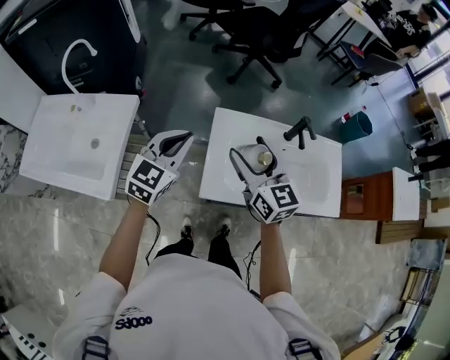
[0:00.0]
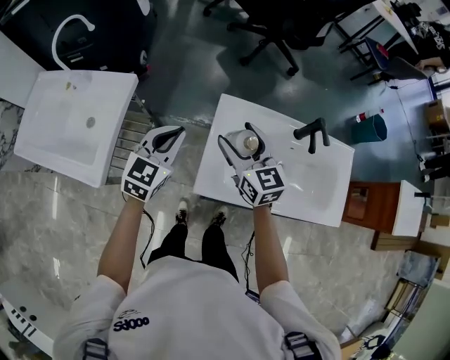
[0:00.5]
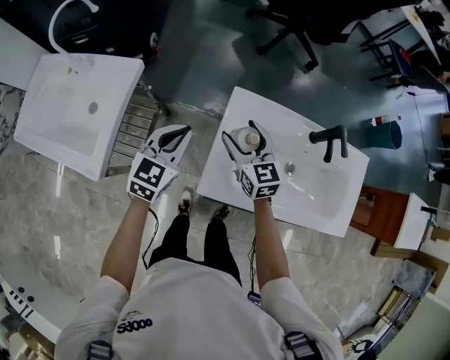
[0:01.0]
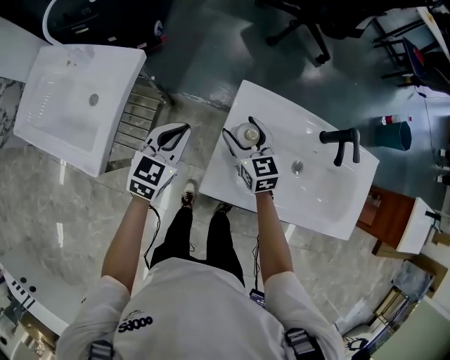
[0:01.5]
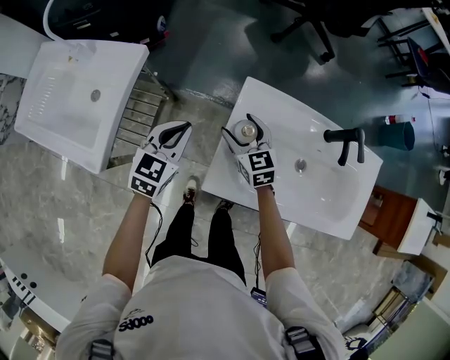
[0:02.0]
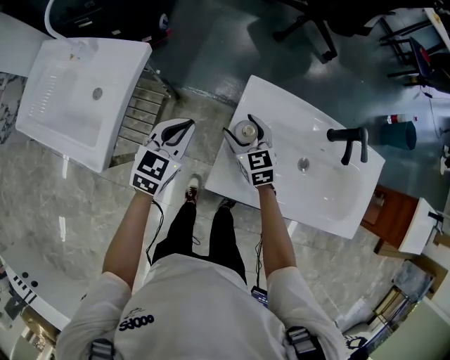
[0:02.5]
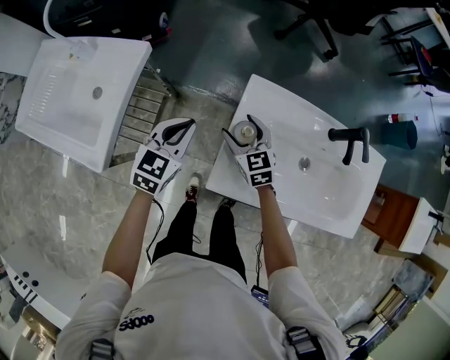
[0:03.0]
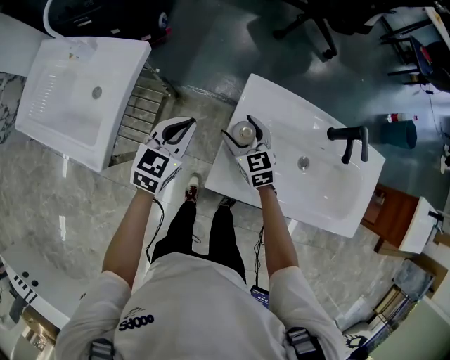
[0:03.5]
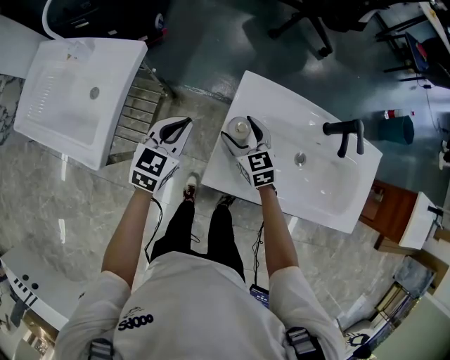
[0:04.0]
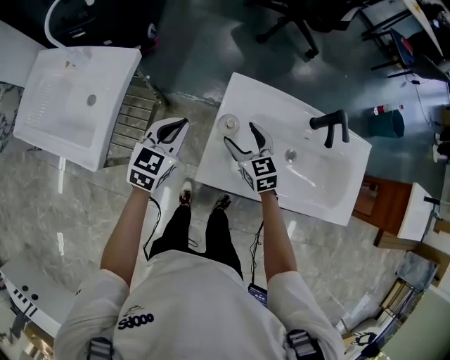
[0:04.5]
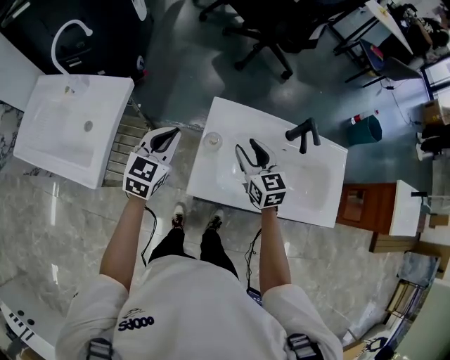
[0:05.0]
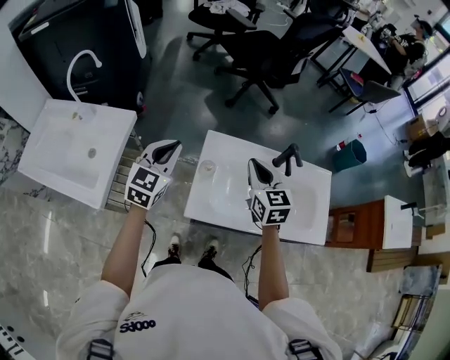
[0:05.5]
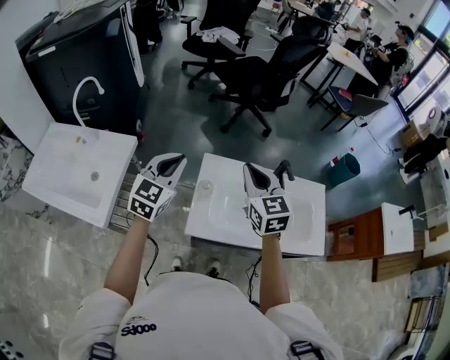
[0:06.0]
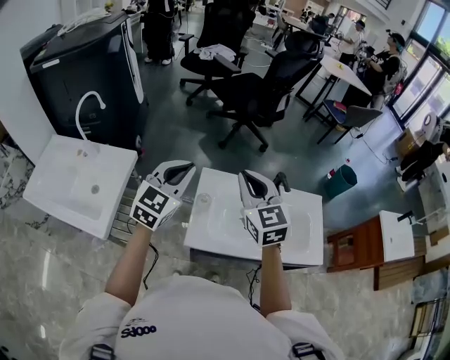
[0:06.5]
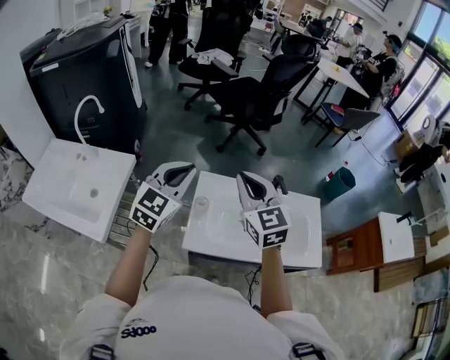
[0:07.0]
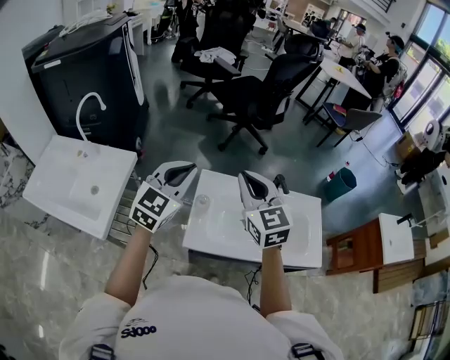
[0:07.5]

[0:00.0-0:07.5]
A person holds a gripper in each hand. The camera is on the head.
0:00.0 to 0:02.0: The left gripper travels downward by about 15 cm, and swivels about 20 degrees; the right gripper goes some 25 cm downward, and turns by some 30 degrees.
0:02.0 to 0:04.0: The grippers make only small movements.
0:04.0 to 0:05.5: The right gripper shifts about 25 cm upward and to the right, swivels roughly 20 degrees, and closes its fingers; the left gripper shifts roughly 15 cm upward.
0:05.5 to 0:07.5: The right gripper shifts about 15 cm upward. The left gripper shifts about 15 cm upward and to the right.

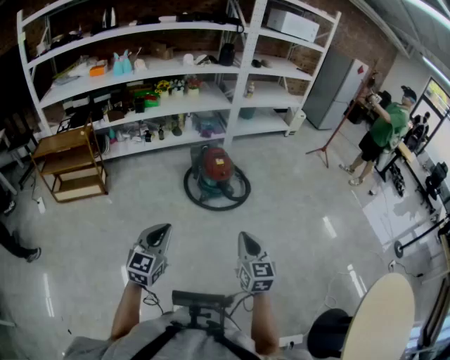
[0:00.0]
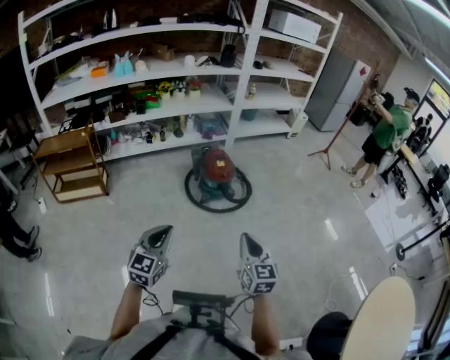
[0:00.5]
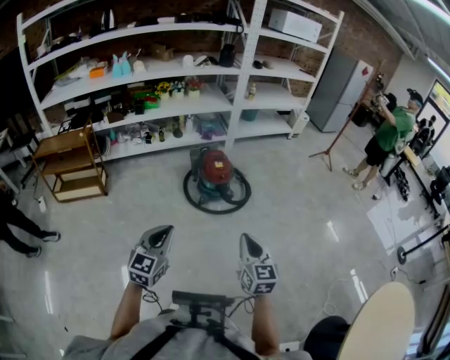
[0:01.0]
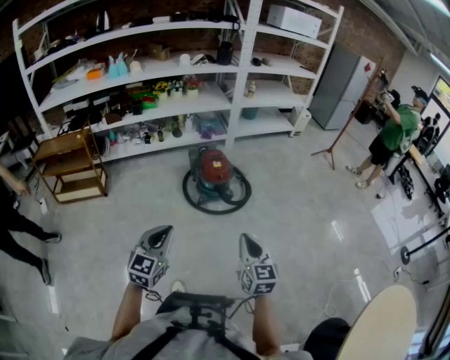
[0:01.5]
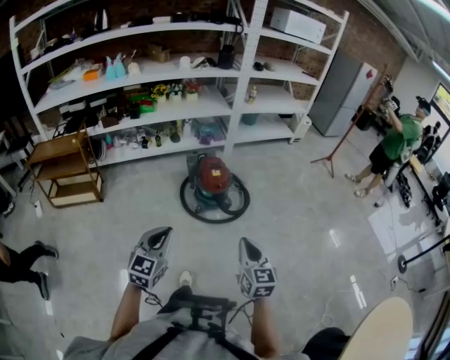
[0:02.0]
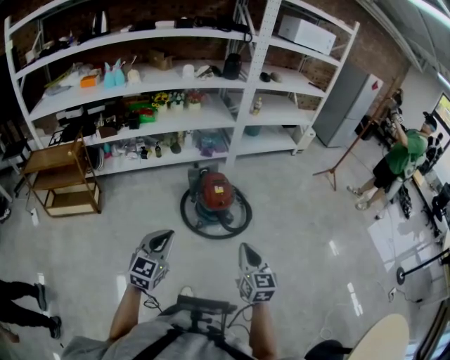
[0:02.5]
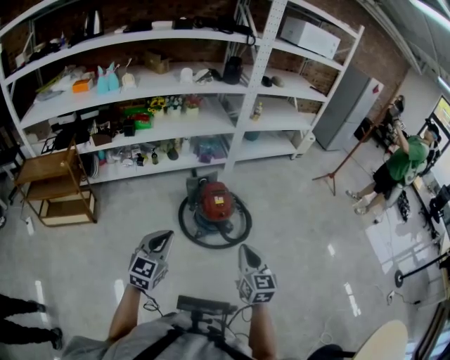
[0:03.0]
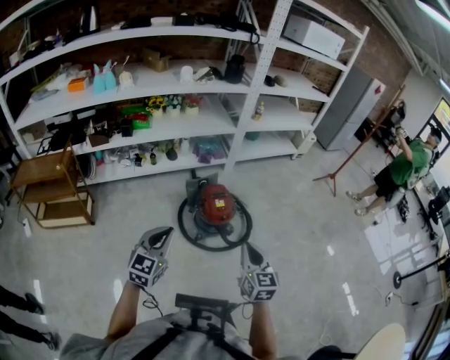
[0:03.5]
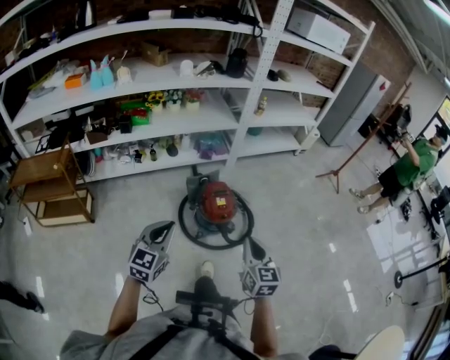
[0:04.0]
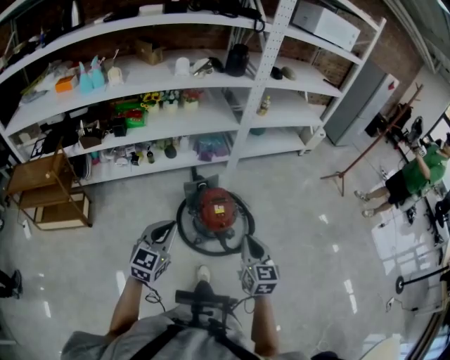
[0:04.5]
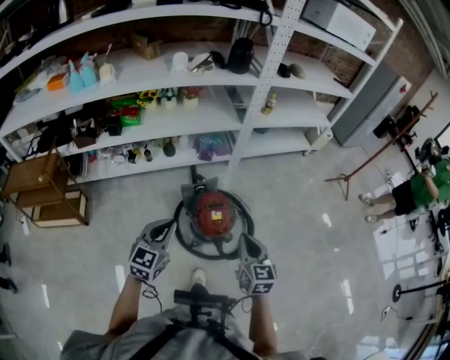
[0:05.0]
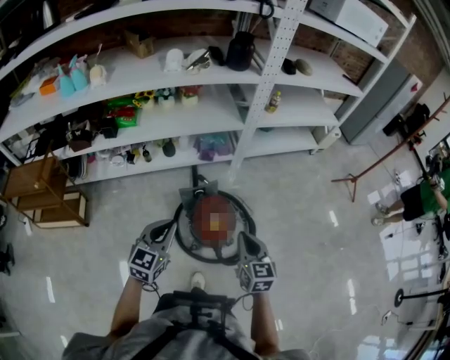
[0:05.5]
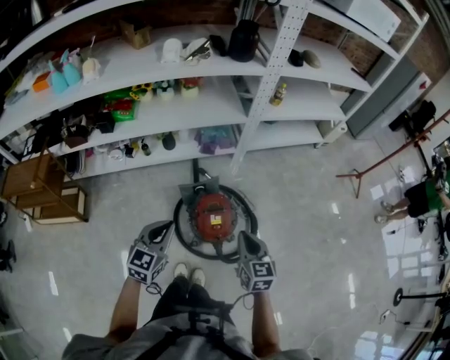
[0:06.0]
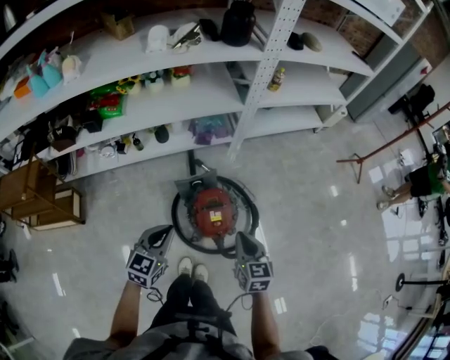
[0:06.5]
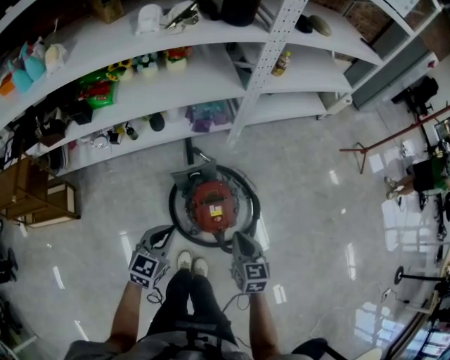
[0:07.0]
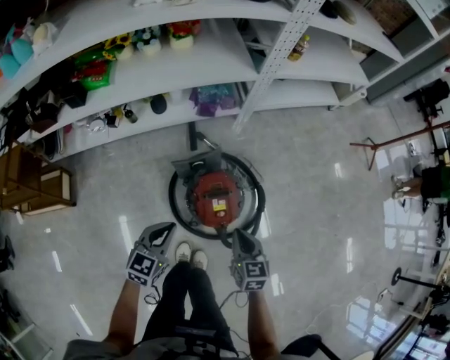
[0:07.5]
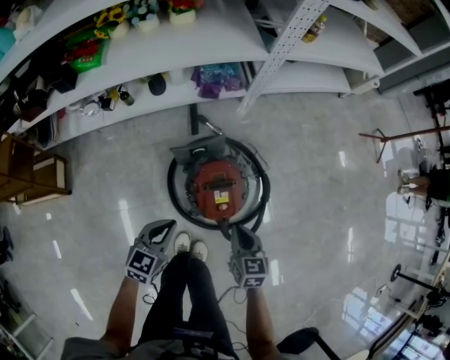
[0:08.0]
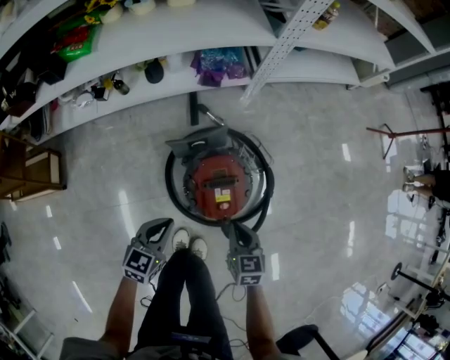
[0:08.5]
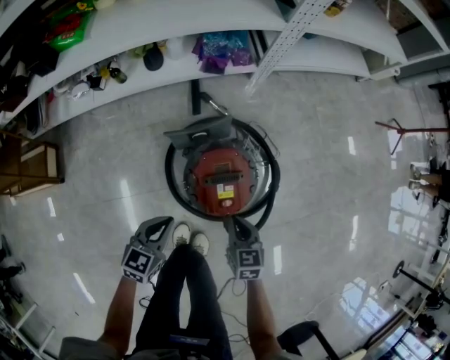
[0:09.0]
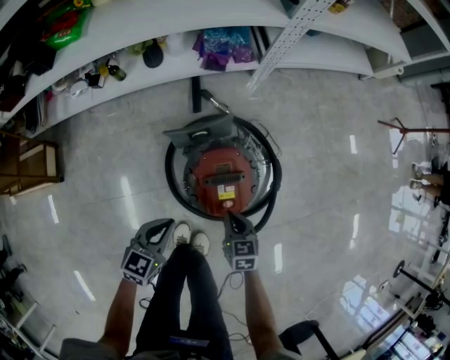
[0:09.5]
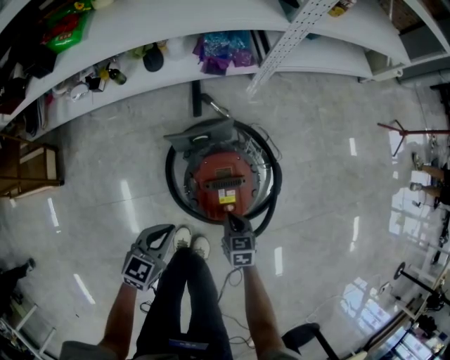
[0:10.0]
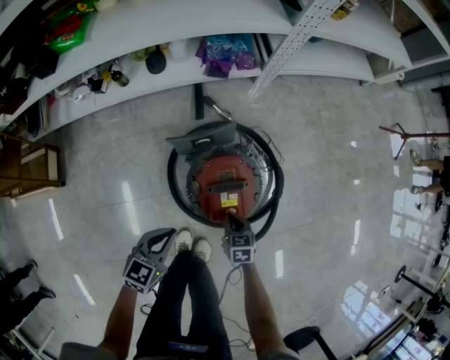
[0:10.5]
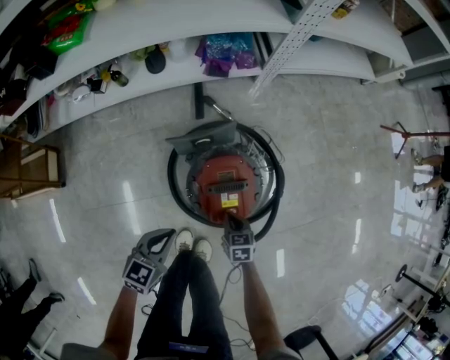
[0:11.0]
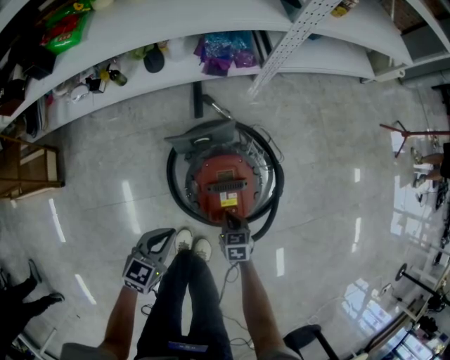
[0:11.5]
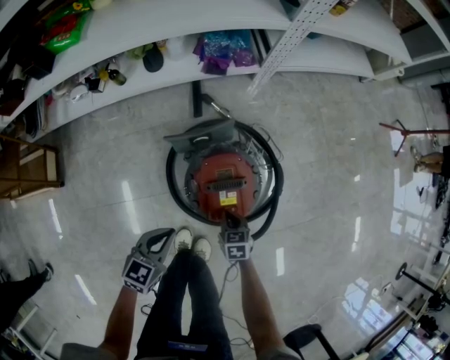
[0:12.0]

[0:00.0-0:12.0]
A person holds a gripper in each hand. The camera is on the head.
0:00.0 to 0:02.0: The two grippers go roughly 15 cm forward and to the right.
0:02.0 to 0:04.0: The two grippers go about 30 cm forward.
0:04.0 to 0:06.0: Both grippers travel together forward, roughly 30 cm.
0:06.0 to 0:08.0: The two grippers go some 25 cm downward.
0:08.0 to 0:10.0: The right gripper is displaced downward by about 20 cm. Meanwhile the left gripper heads downward, covering approximately 10 cm.
0:10.0 to 0:12.0: The right gripper goes about 5 cm downward.

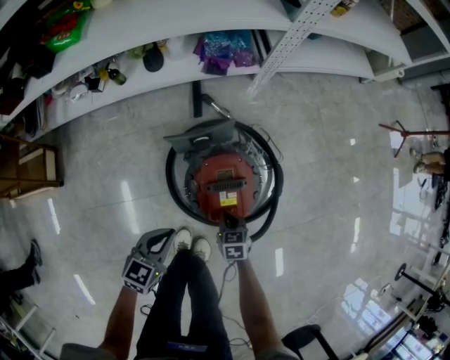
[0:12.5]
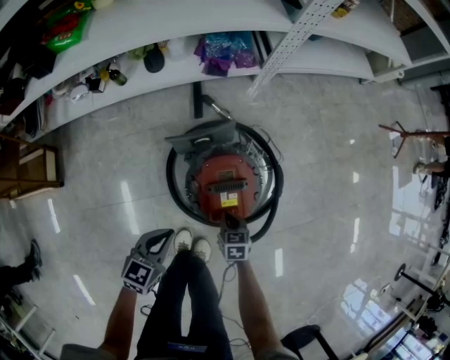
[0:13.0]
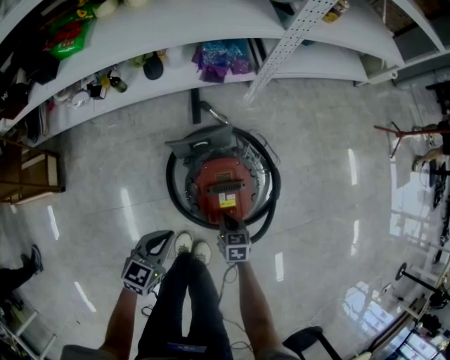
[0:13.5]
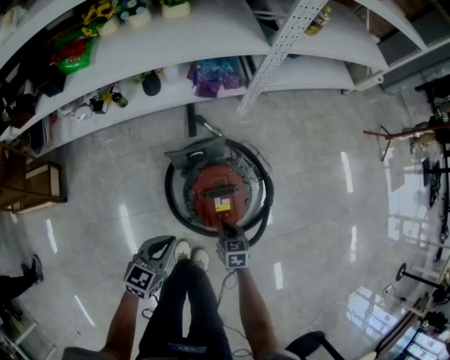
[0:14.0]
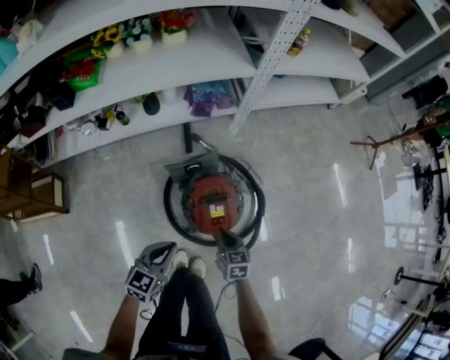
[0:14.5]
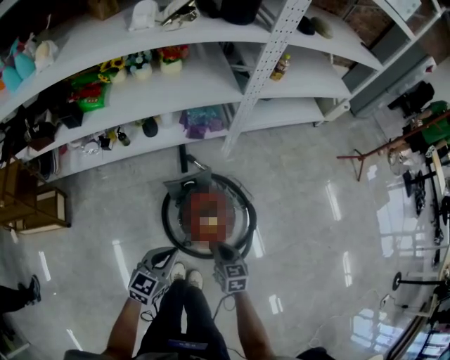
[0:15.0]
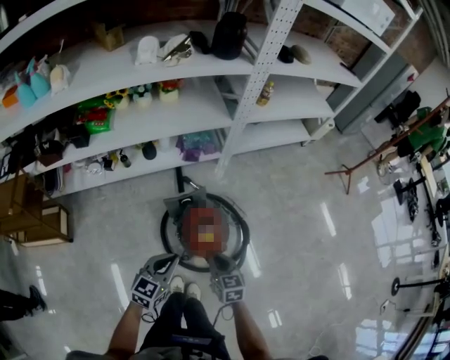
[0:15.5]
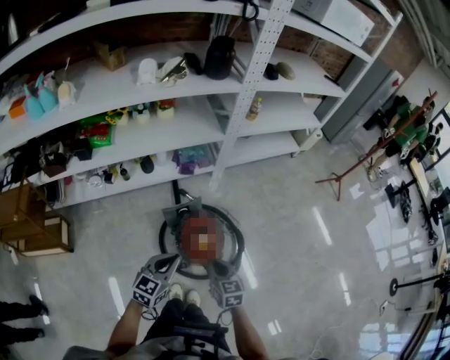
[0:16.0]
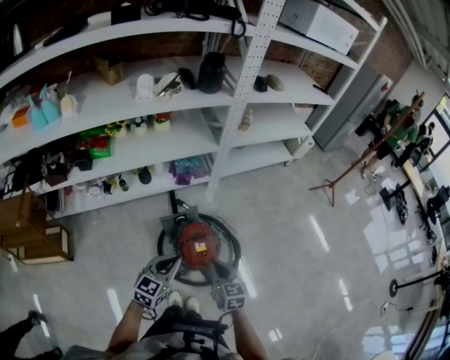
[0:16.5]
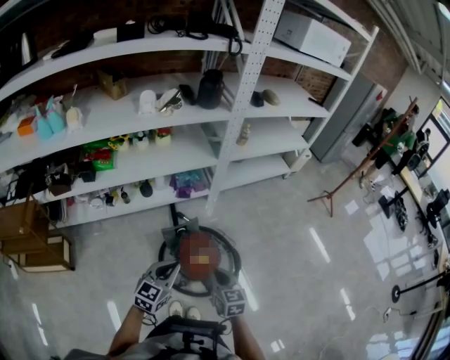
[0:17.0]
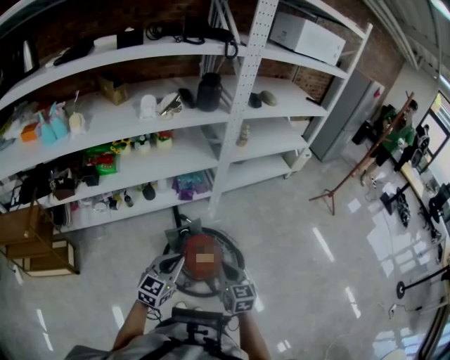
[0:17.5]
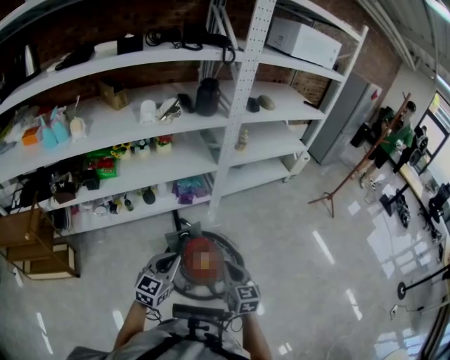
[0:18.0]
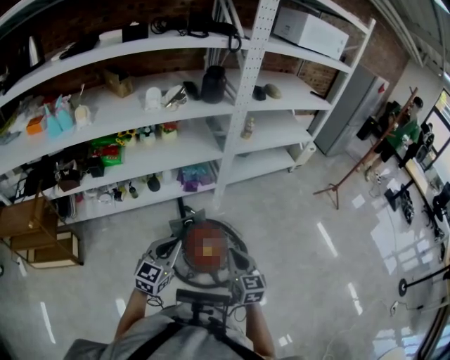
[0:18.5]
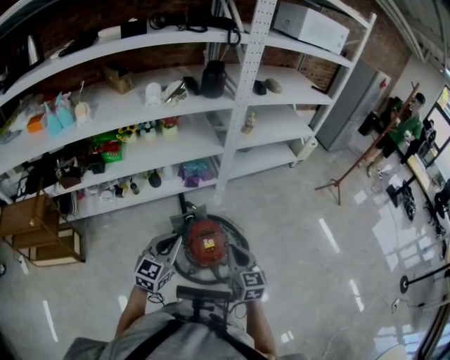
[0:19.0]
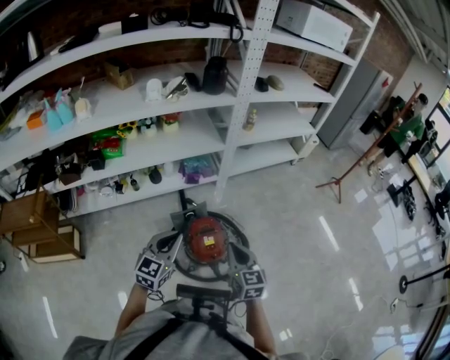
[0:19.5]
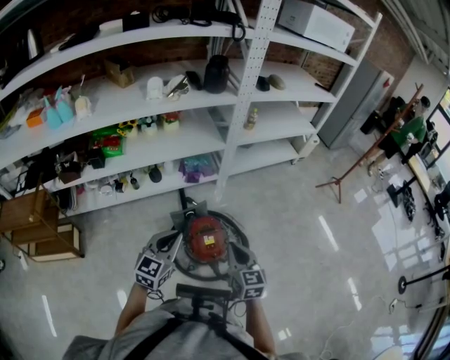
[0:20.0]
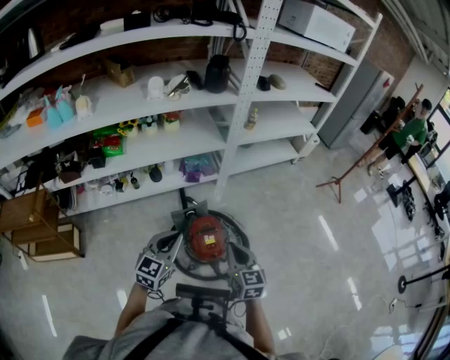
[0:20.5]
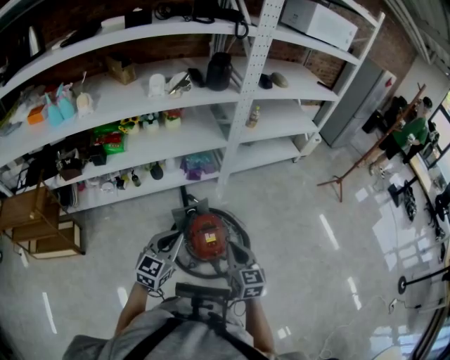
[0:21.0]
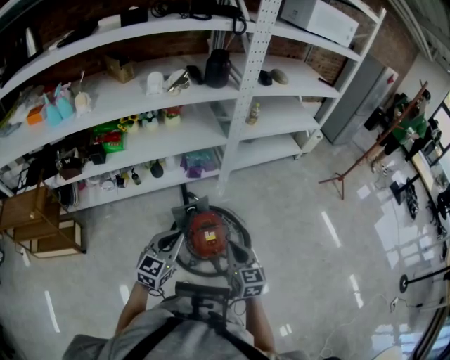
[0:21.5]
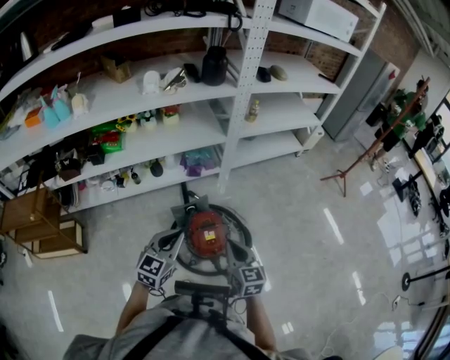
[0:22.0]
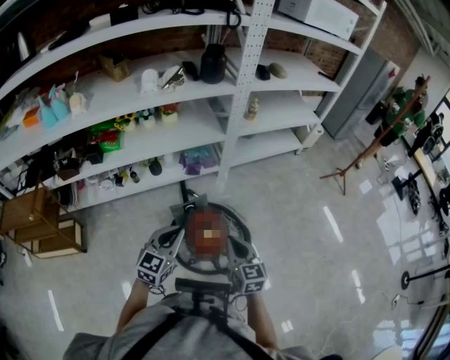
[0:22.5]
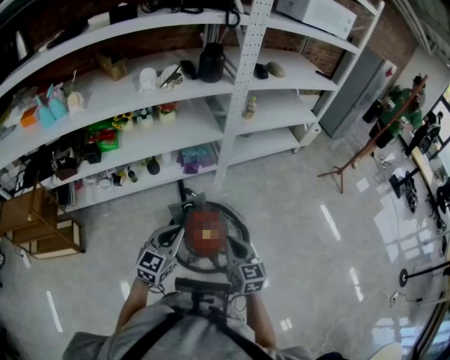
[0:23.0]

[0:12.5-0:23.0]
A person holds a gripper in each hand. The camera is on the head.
0:12.5 to 0:14.5: The two grippers go approximately 15 cm upward.
0:14.5 to 0:16.5: The two grippers go roughly 25 cm upward.
0:16.5 to 0:19.0: Both grippers travel together upward, some 10 cm.
0:19.0 to 0:23.0: There are only small adjustments of the grippers.
